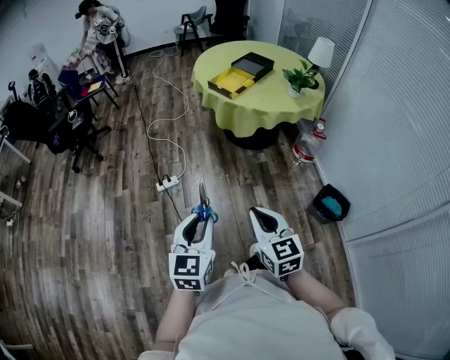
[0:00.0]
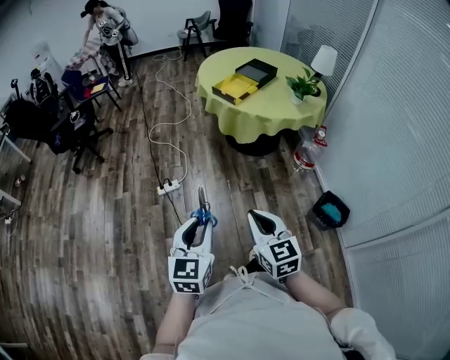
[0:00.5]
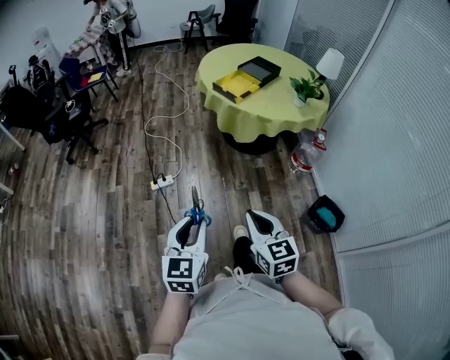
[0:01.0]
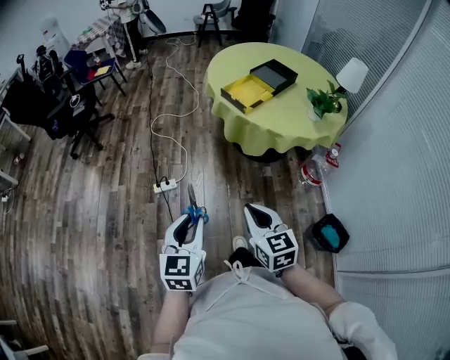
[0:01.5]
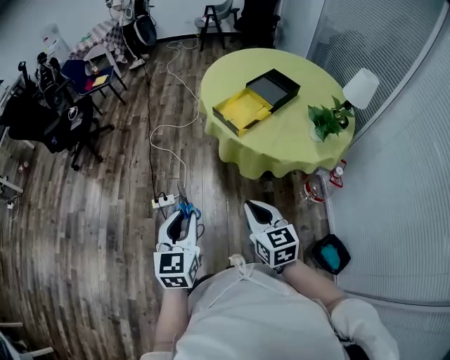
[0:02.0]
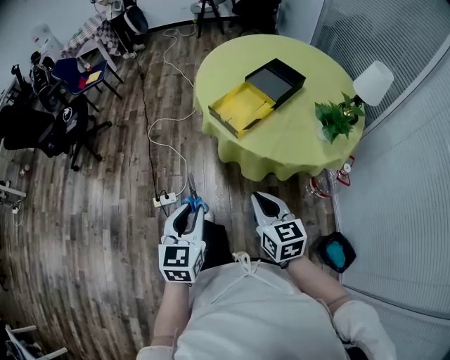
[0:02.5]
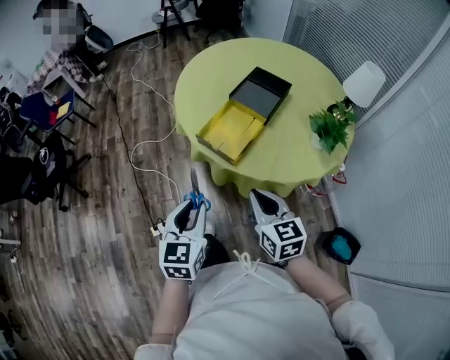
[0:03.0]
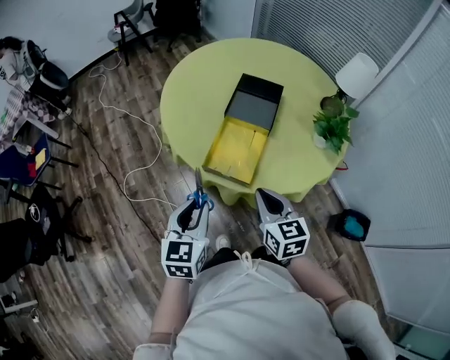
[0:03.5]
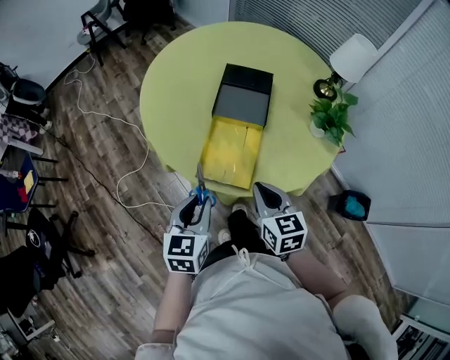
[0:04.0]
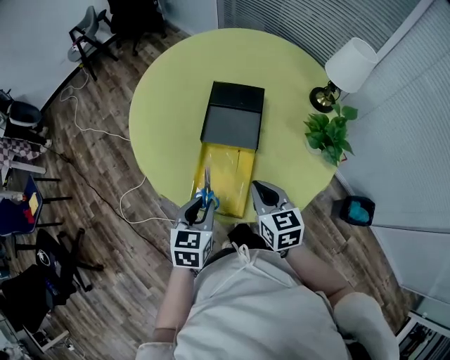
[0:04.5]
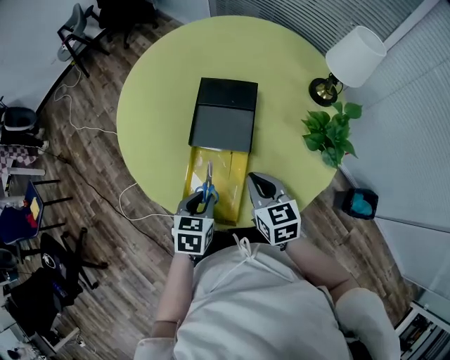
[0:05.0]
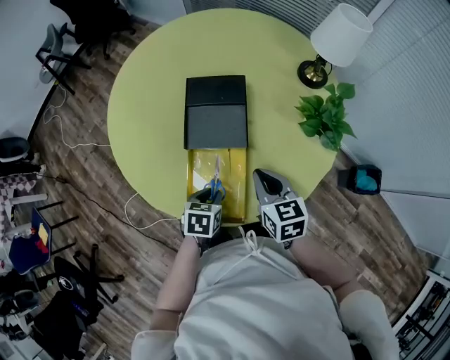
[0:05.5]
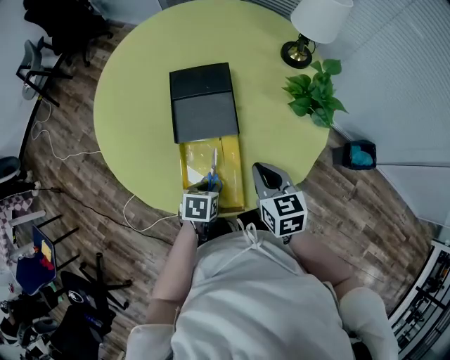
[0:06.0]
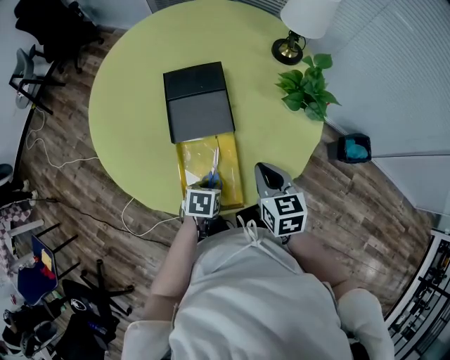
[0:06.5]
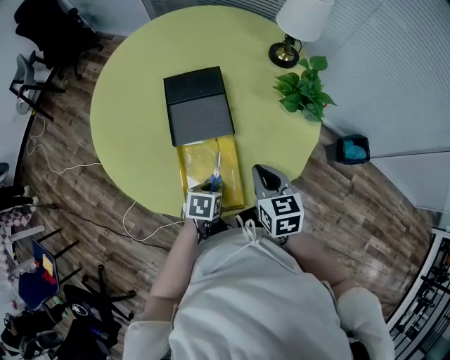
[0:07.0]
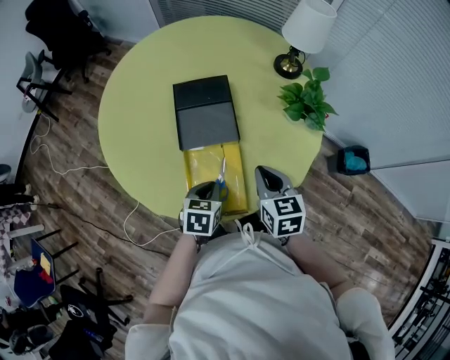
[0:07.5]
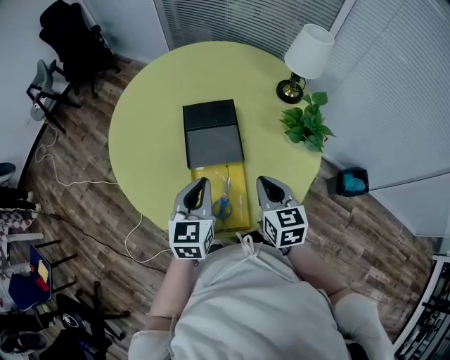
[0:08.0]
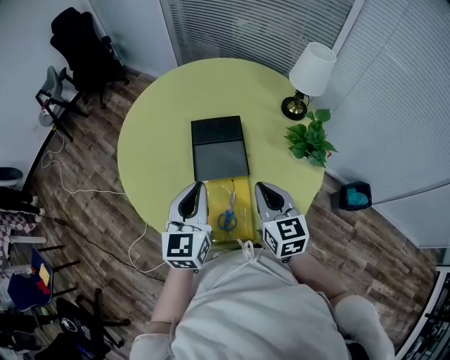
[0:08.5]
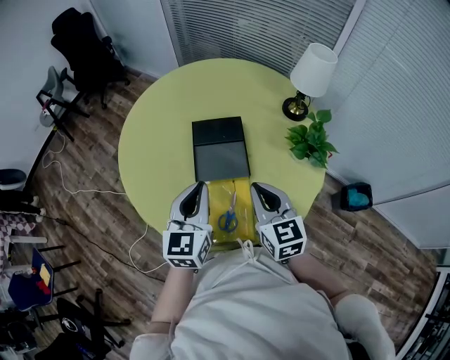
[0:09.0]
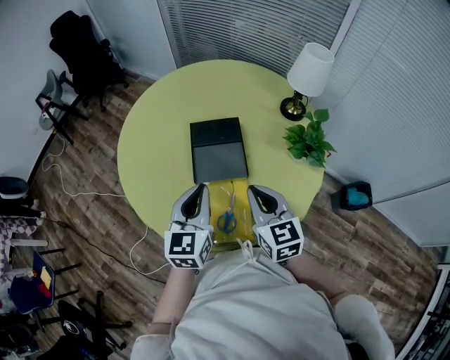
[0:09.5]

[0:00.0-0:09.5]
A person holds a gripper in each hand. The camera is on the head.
0.0 to 2.0 s: Both grippers travel together forward, approximately 35 cm.
2.0 to 4.0 s: Both grippers are carried approximately 50 cm. The left gripper turns by about 40 degrees, while the right gripper changes its angle by roughly 40 degrees.
4.0 to 5.5 s: The right gripper moves forward and to the right, about 20 cm; the left gripper moves forward, downward and to the right, approximately 25 cm, and tips its fingers downward by roughly 30 degrees.
5.5 to 7.5 s: There are only small adjustments of the grippers.
7.5 to 9.5 s: The right gripper travels upward and to the left by approximately 10 cm, while the left gripper moves upward, roughly 20 cm, and tips its fingers upward by roughly 40 degrees.

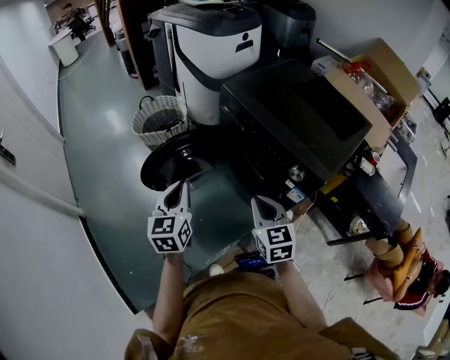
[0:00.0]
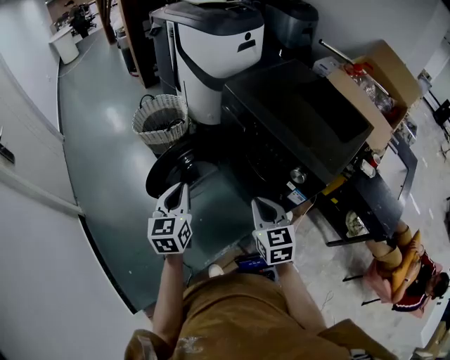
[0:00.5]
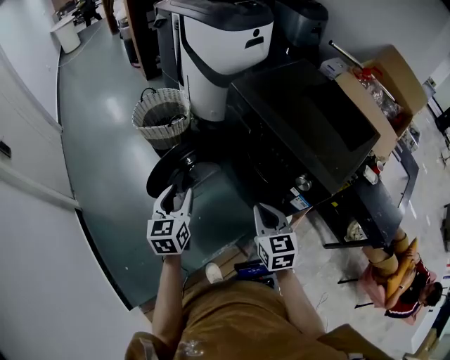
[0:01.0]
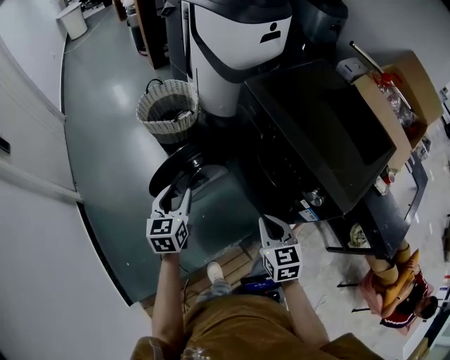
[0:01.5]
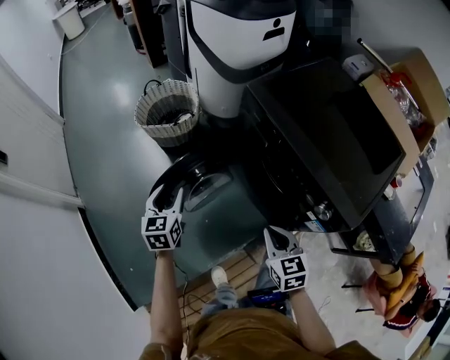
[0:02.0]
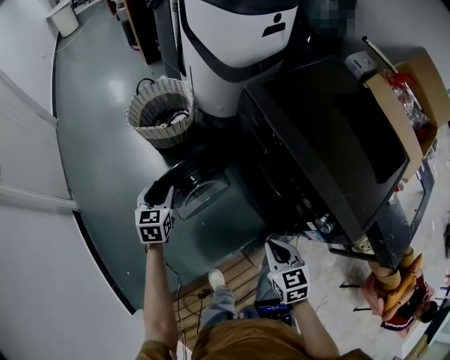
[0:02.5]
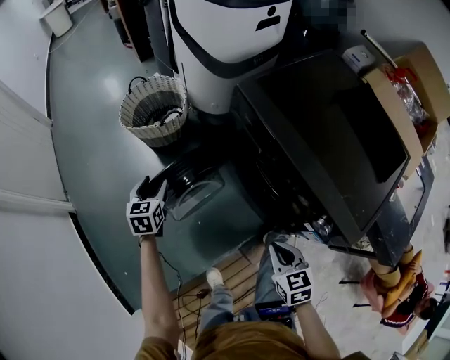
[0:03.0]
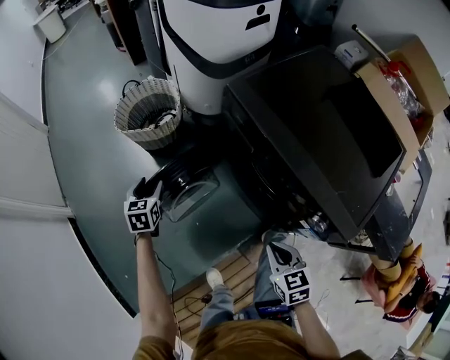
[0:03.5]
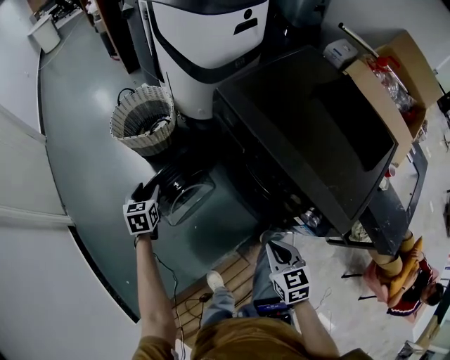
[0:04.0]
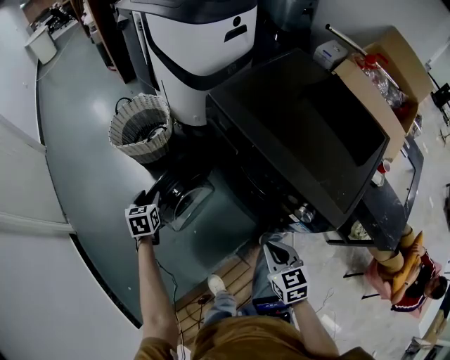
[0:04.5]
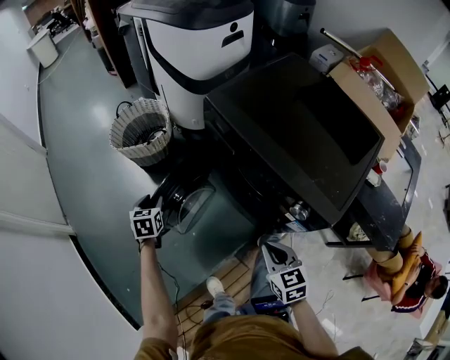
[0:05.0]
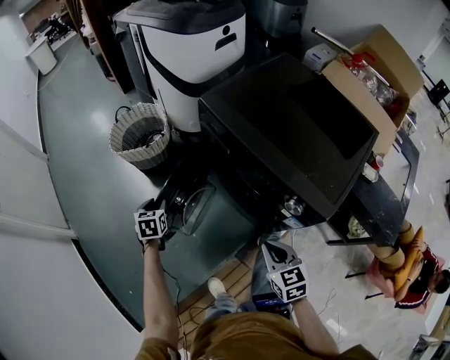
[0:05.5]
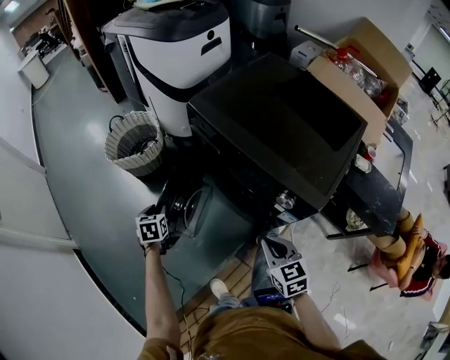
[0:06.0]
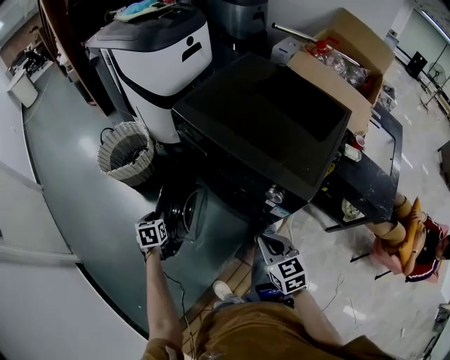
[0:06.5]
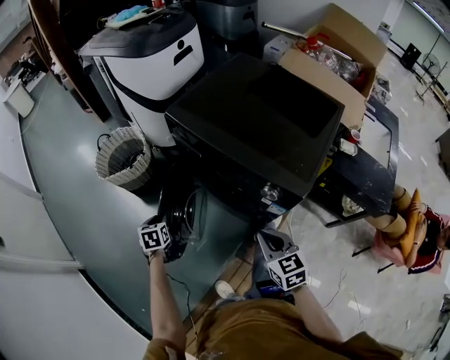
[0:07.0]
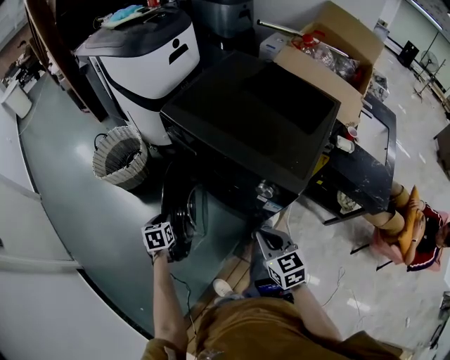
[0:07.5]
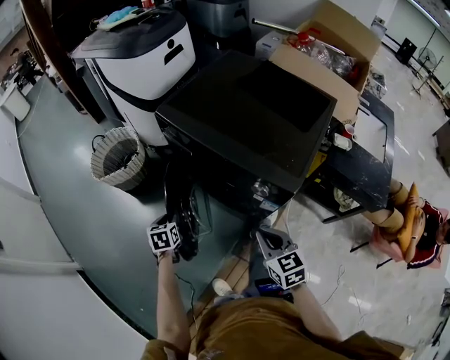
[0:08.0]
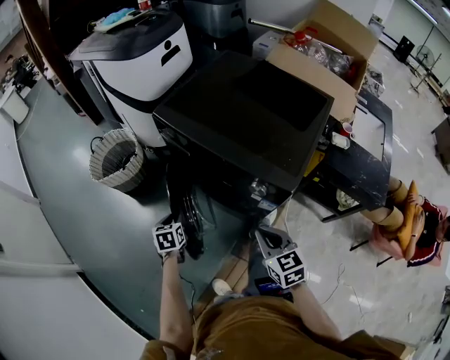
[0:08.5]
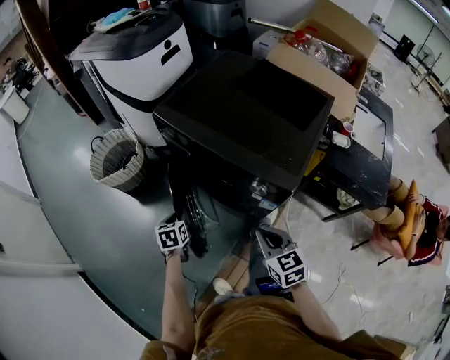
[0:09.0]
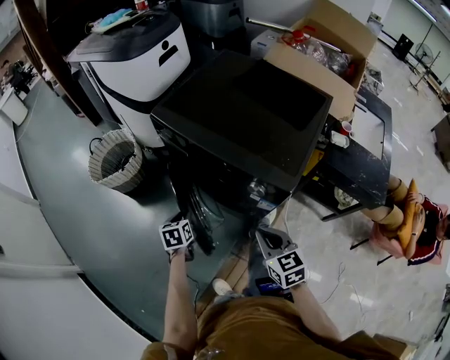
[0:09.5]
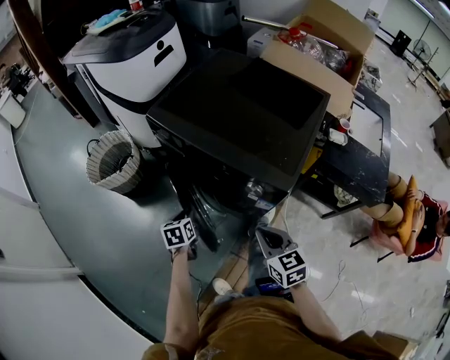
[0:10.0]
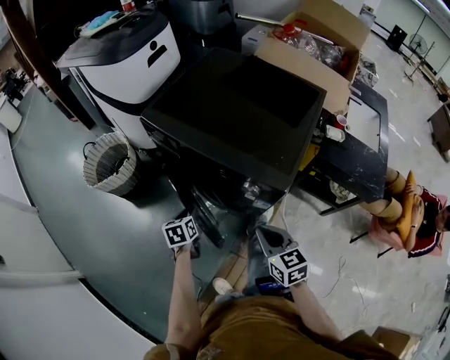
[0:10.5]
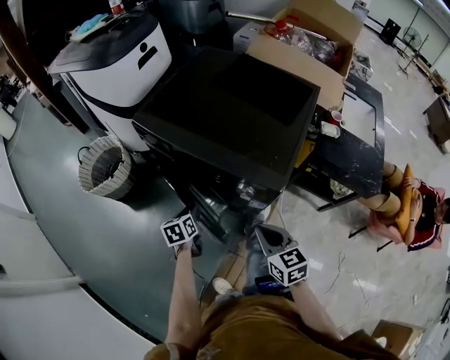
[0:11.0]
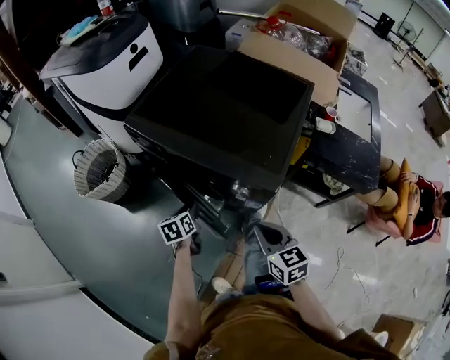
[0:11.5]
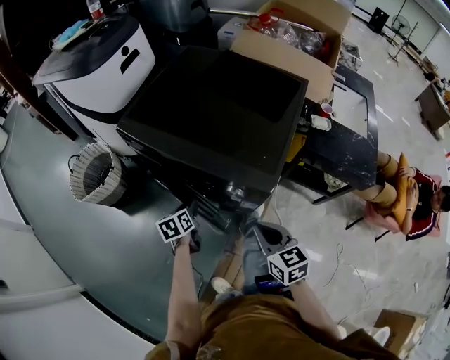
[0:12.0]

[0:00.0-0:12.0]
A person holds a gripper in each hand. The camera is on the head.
0.0 to 2.0 s: The right gripper heads downward and forward, covering some 10 cm. The left gripper goes roughly 20 cm forward, downward and to the left, and opens its fingers.
2.0 to 4.0 s: The left gripper shifts roughly 15 cm forward and downward. Meanwhile the right gripper goes approximately 5 cm to the right.
4.0 to 6.0 s: The left gripper travels backward and to the right by some 10 cm, and closes, while the right gripper goes approximately 5 cm backward.
6.0 to 8.0 s: The right gripper ends up some 5 cm from where it was. The left gripper shifts about 10 cm to the right.
8.0 to 10.0 s: The left gripper goes about 10 cm to the right.
10.0 to 12.0 s: The left gripper travels to the right and forward by roughly 10 cm, while the right gripper changes place by some 5 cm.

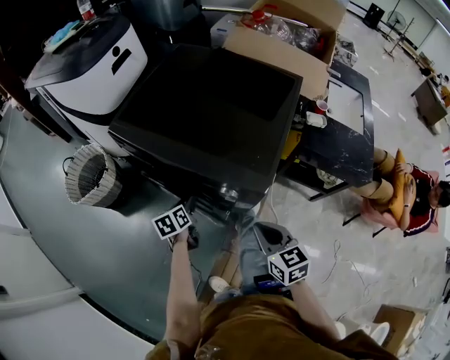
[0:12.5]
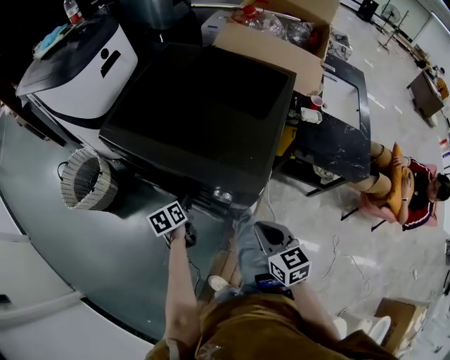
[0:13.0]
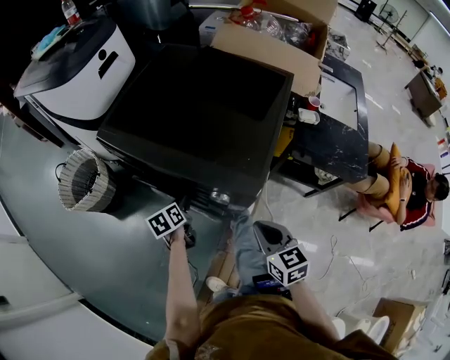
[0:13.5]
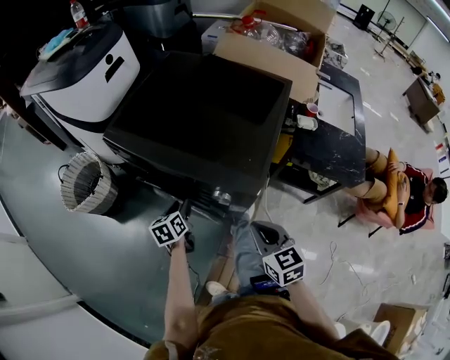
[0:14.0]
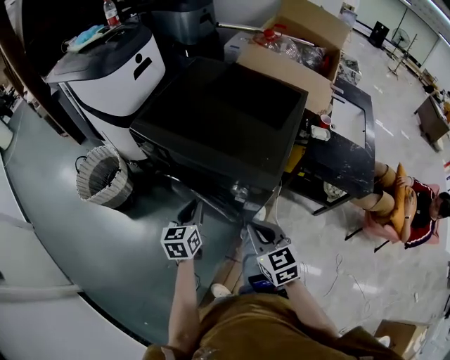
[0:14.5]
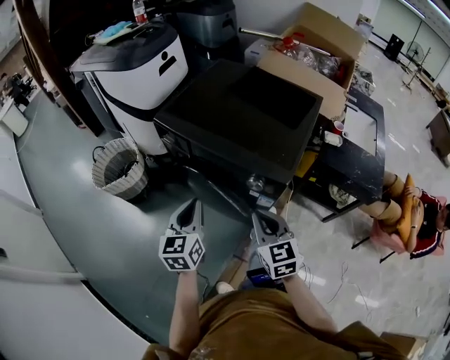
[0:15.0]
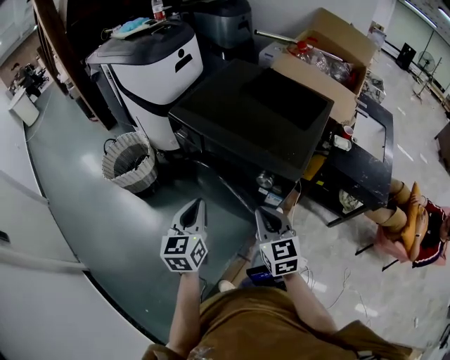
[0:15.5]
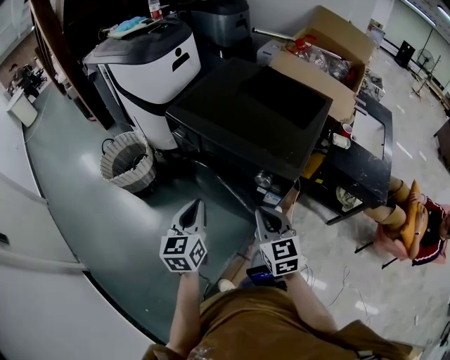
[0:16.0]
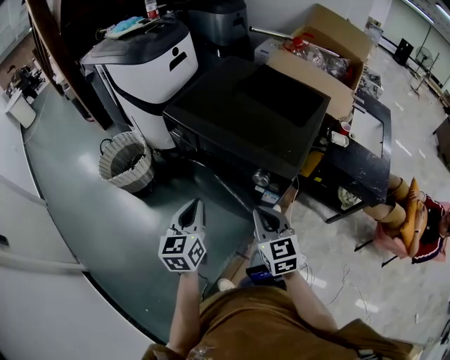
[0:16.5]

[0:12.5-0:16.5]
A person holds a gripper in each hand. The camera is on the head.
12.5 to 14.5 s: The left gripper moves upward and backward, roughly 15 cm, turns by roughly 30 degrees, and closes its fingers; the right gripper goes some 5 cm to the left.
14.5 to 16.5 s: The right gripper moves approximately 5 cm. The left gripper heads upward, backward and to the left, covering some 15 cm.

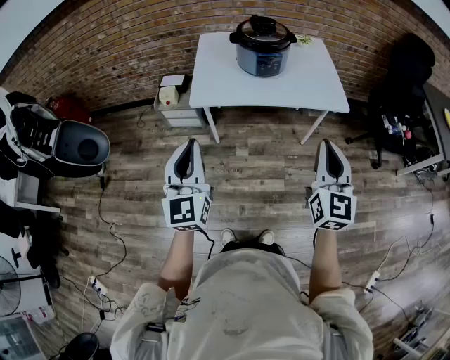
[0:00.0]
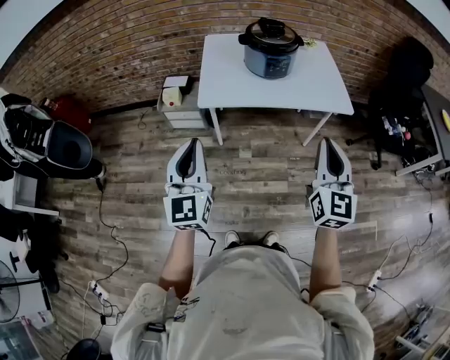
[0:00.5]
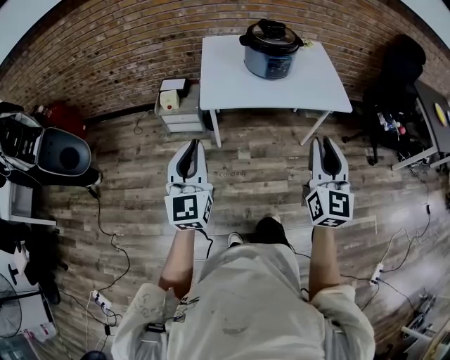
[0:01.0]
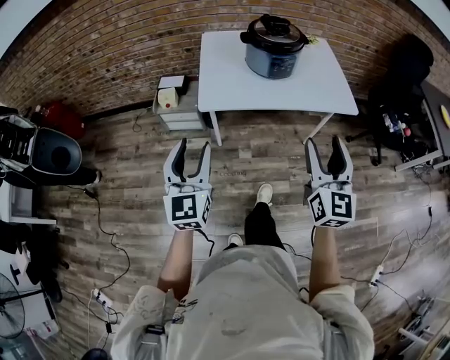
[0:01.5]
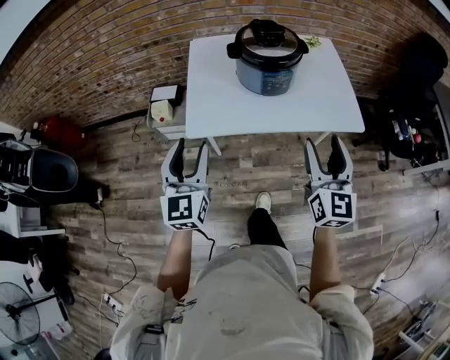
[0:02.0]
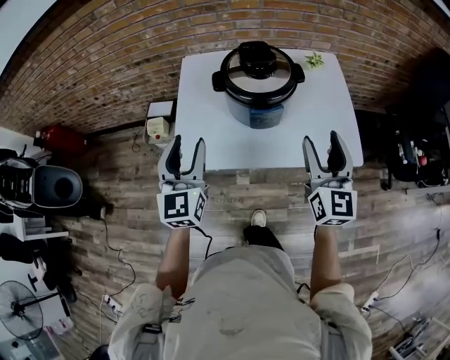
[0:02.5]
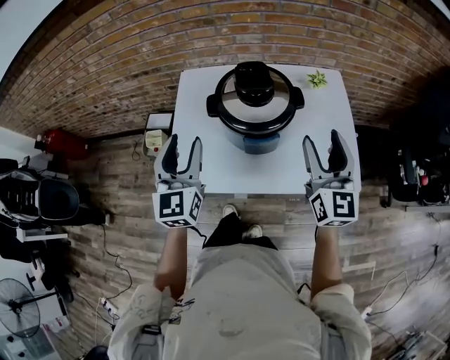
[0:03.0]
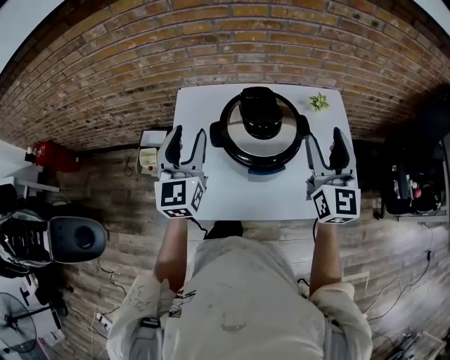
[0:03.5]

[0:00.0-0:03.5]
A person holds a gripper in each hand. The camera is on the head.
0.0 to 2.0 s: Both grippers move forward, approximately 20 cm. The right gripper opens up. The left gripper opens its fingers.
2.0 to 3.5 s: The grippers both shift forward by some 35 cm.
